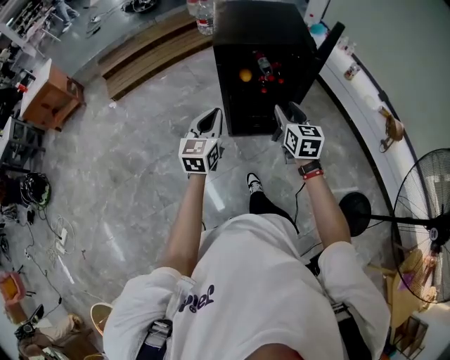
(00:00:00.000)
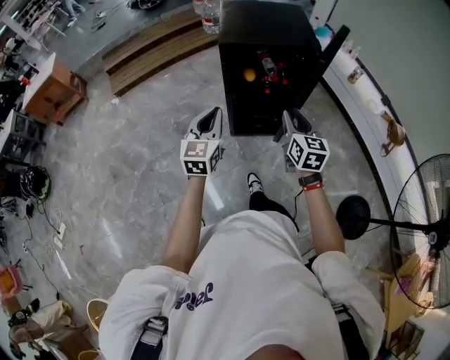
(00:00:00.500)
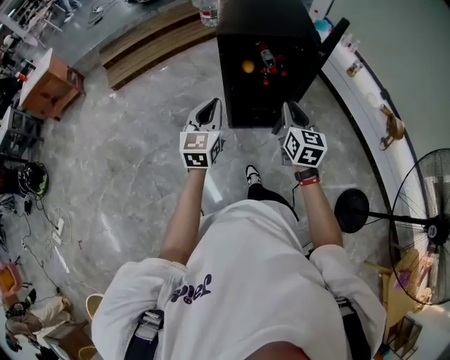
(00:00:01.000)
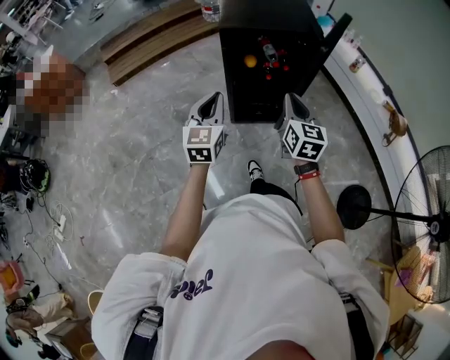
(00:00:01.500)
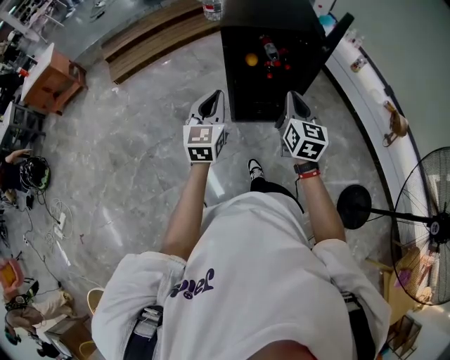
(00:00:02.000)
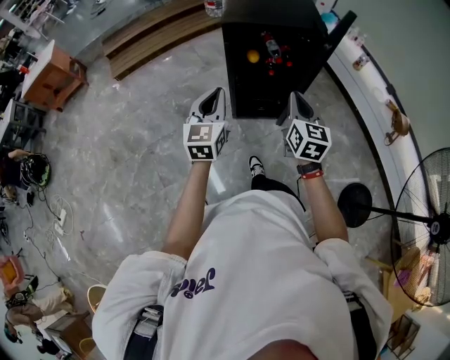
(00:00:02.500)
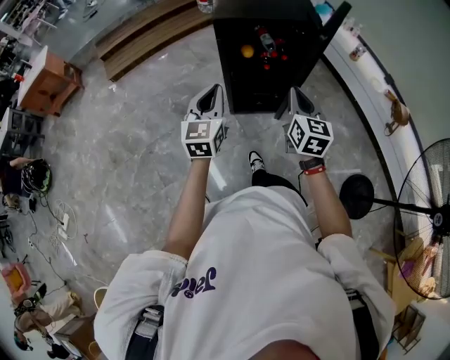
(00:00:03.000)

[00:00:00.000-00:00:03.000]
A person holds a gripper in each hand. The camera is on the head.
00:00:00.000 to 00:00:01.500: The right gripper closes.
00:00:01.500 to 00:00:03.000: There are only small adjustments of the grippers.

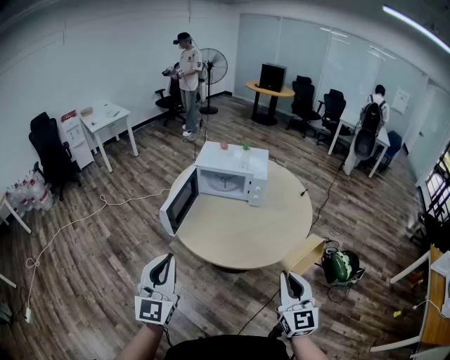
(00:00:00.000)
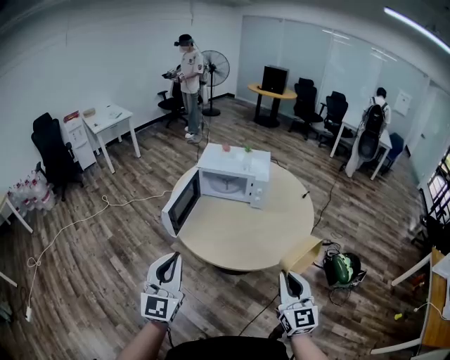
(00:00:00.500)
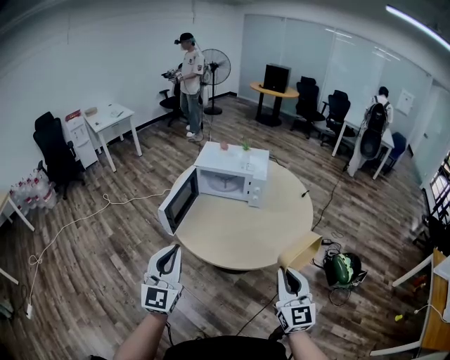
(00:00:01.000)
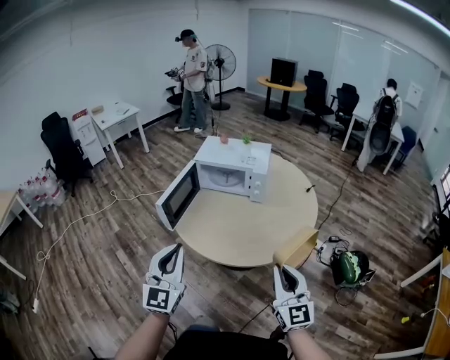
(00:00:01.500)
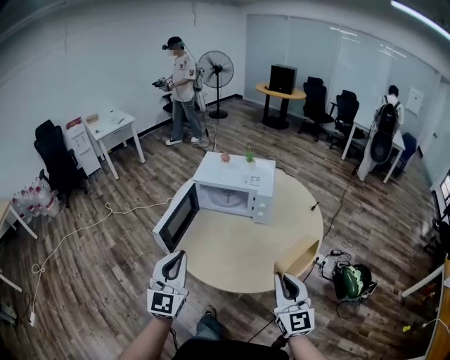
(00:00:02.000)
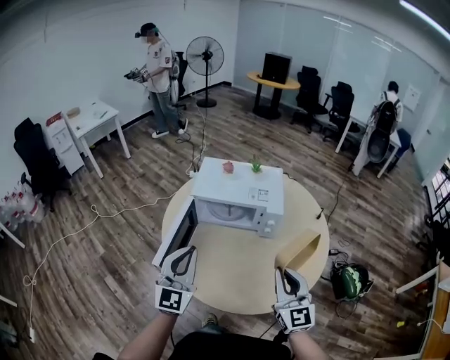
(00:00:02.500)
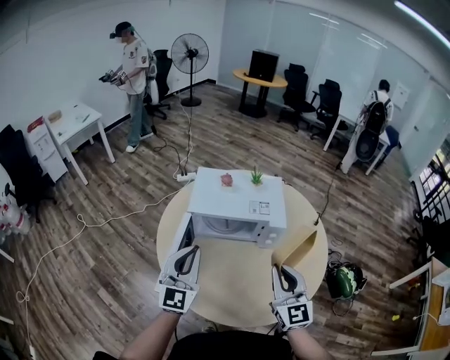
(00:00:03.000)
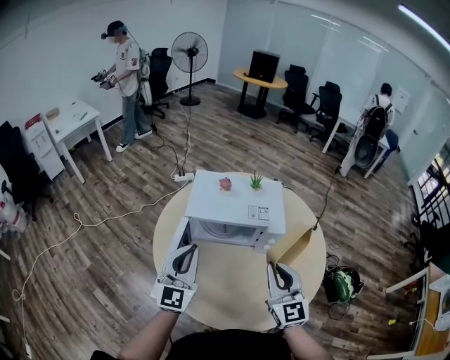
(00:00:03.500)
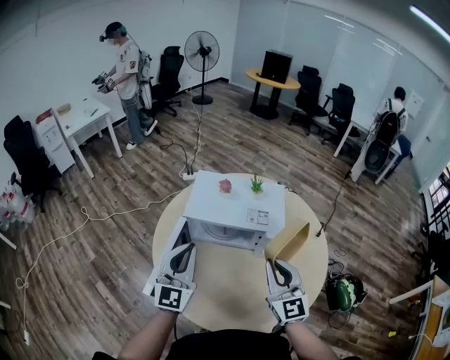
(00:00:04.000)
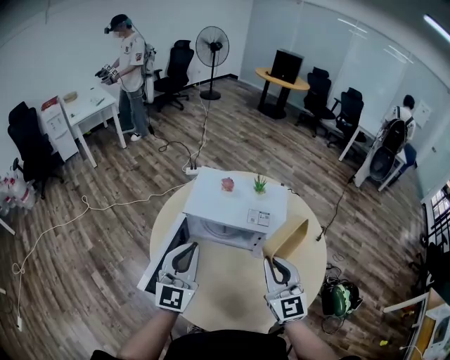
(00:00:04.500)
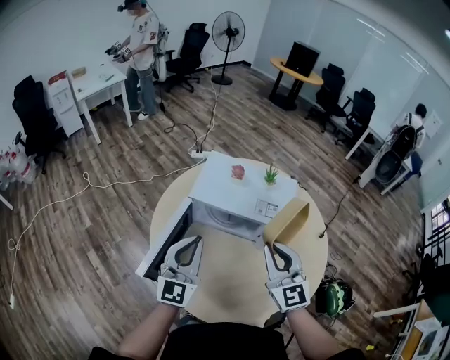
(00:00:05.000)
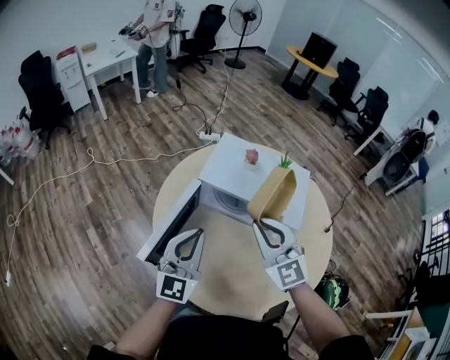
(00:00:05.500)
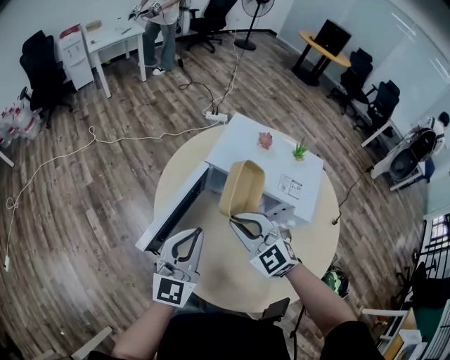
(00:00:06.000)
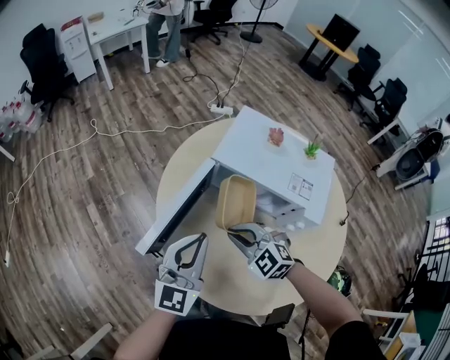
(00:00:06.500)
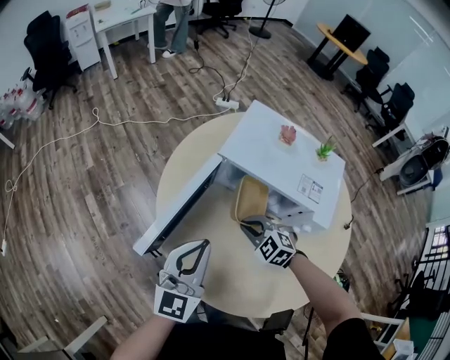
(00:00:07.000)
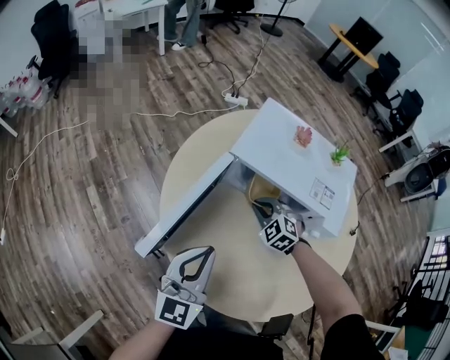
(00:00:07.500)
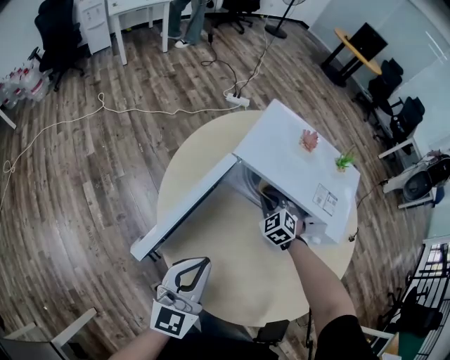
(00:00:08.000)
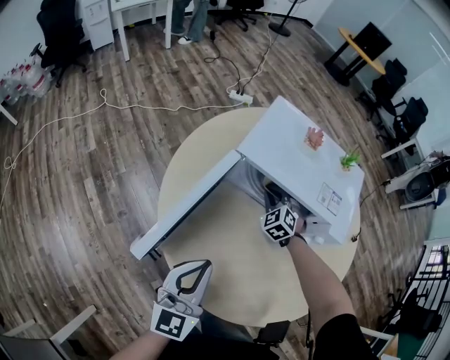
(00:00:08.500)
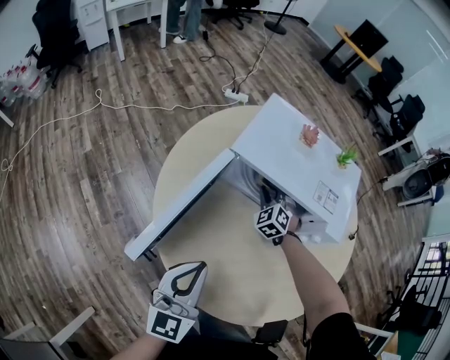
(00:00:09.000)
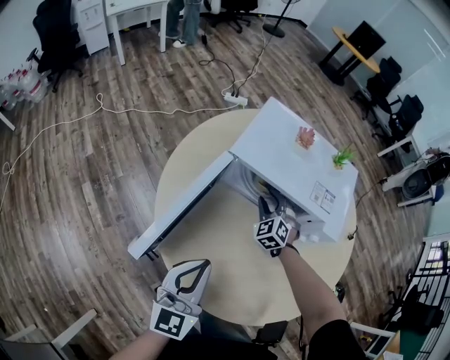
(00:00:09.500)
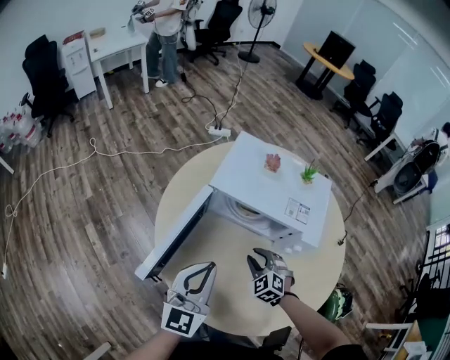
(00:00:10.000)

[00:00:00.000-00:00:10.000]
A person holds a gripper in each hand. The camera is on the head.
00:00:00.000 to 00:00:02.000: The two grippers go about 15 cm forward.
00:00:02.000 to 00:00:04.000: The grippers both shift forward by approximately 30 cm.
00:00:04.000 to 00:00:06.000: The left gripper shifts some 10 cm downward, while the right gripper heads to the left, downward and forward, covering approximately 20 cm, and turns by some 50 degrees.
00:00:06.000 to 00:00:08.000: The left gripper shifts about 5 cm downward; the right gripper travels downward, forward and to the right by about 30 cm, and rotates approximately 30 degrees.
00:00:08.000 to 00:00:10.000: The left gripper goes about 5 cm upward, while the right gripper is displaced backward by about 15 cm, and opens.

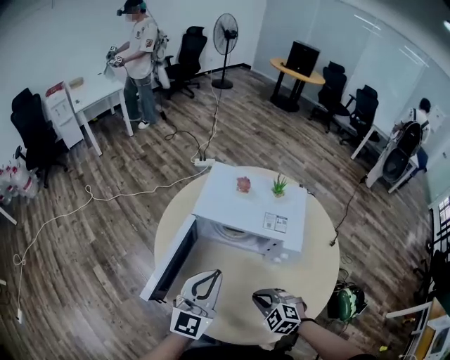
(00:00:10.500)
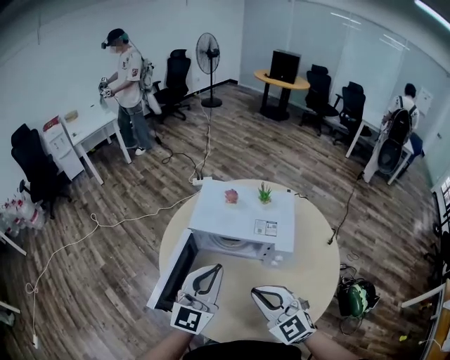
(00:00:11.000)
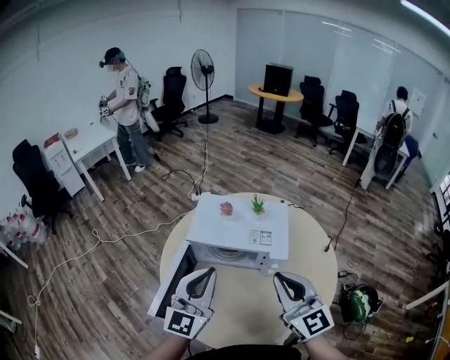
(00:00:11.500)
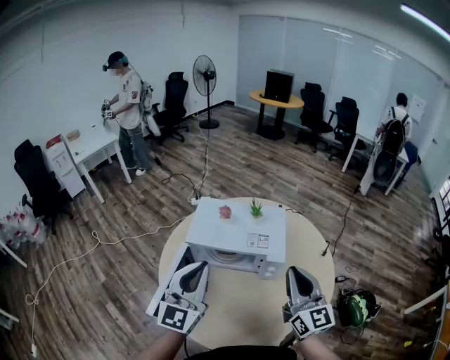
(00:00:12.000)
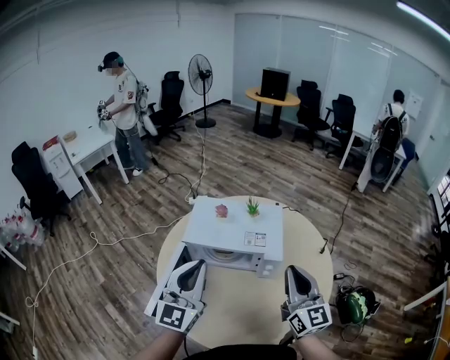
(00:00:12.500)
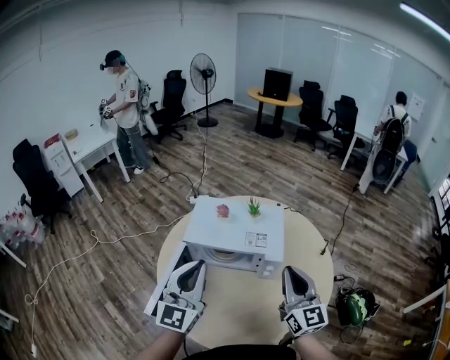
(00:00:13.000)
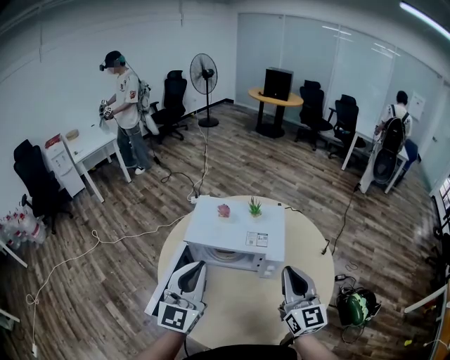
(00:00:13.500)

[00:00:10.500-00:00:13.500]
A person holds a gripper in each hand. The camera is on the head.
00:00:10.500 to 00:00:12.000: The left gripper goes roughly 15 cm upward; the right gripper heads upward, covering approximately 30 cm, and tilts its fingers roughly 60 degrees upward.
00:00:12.000 to 00:00:13.500: The grippers move only a little.

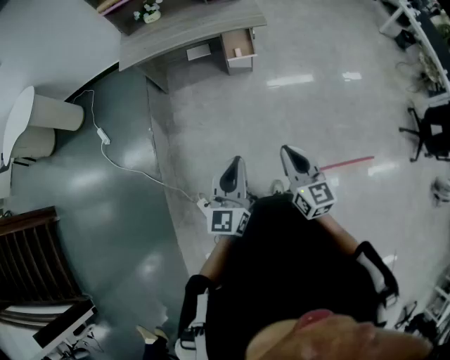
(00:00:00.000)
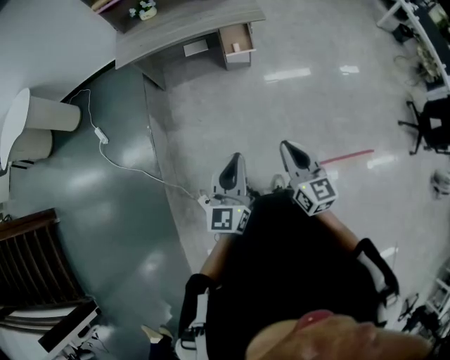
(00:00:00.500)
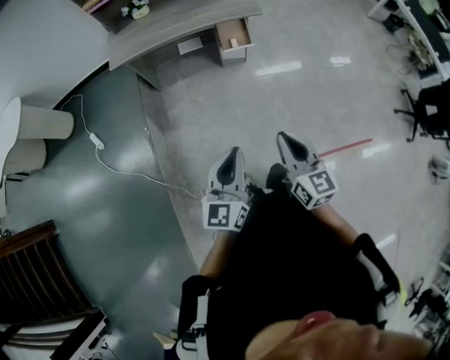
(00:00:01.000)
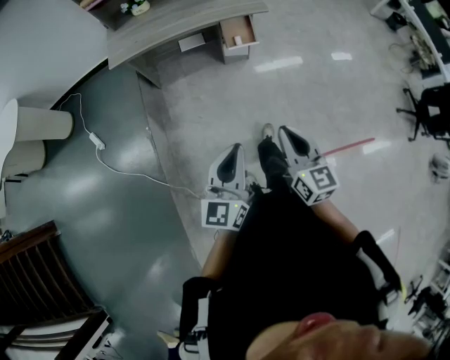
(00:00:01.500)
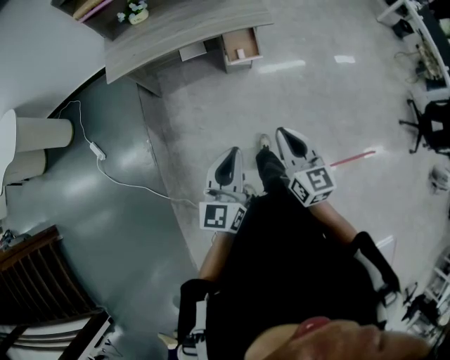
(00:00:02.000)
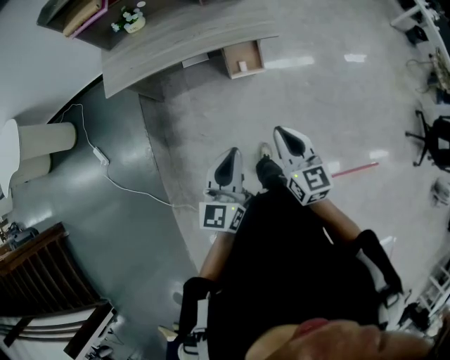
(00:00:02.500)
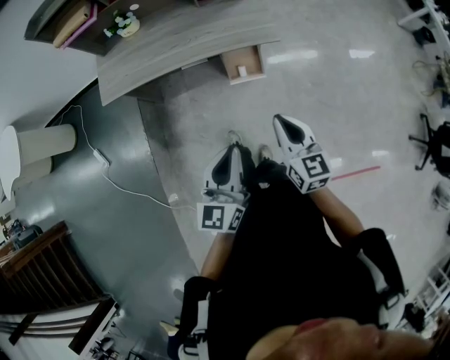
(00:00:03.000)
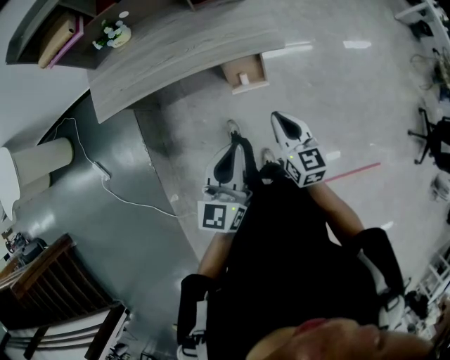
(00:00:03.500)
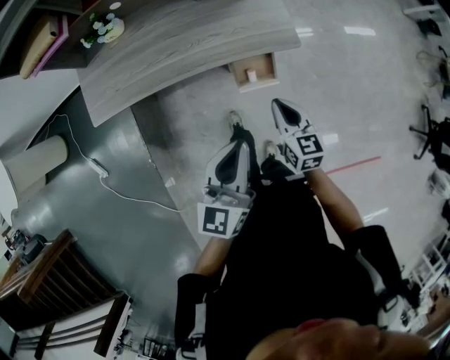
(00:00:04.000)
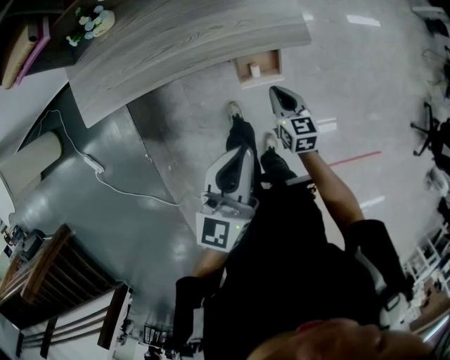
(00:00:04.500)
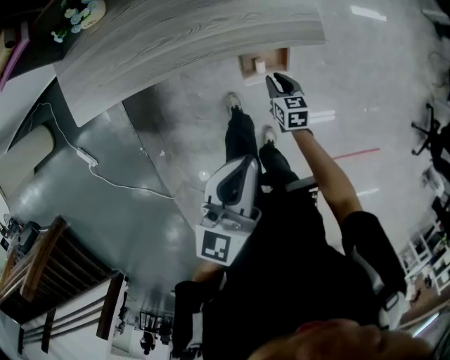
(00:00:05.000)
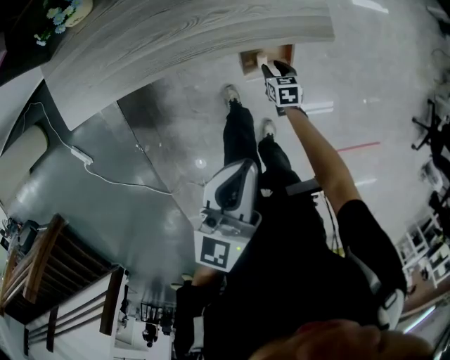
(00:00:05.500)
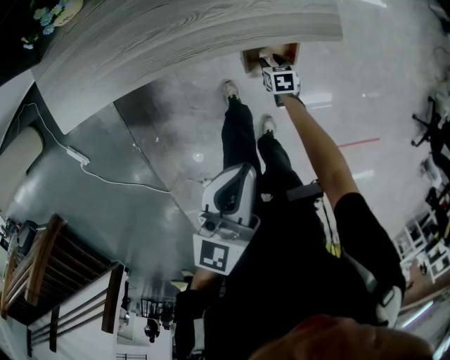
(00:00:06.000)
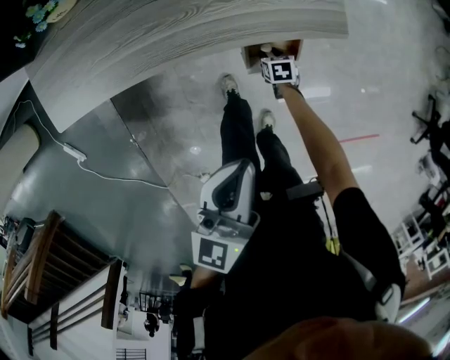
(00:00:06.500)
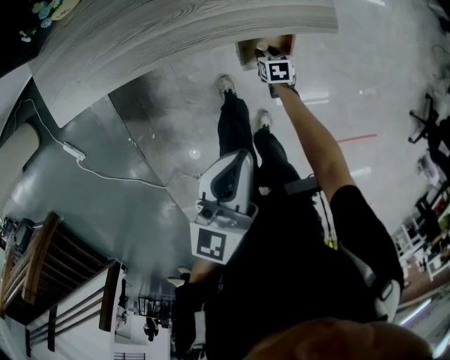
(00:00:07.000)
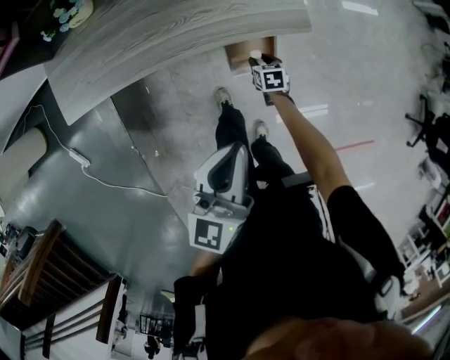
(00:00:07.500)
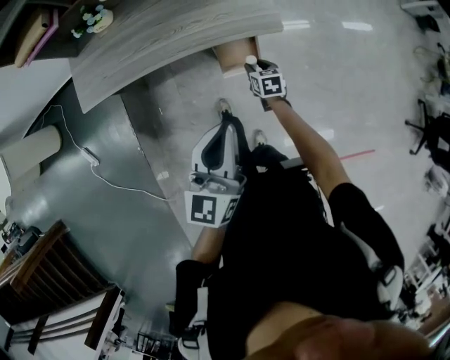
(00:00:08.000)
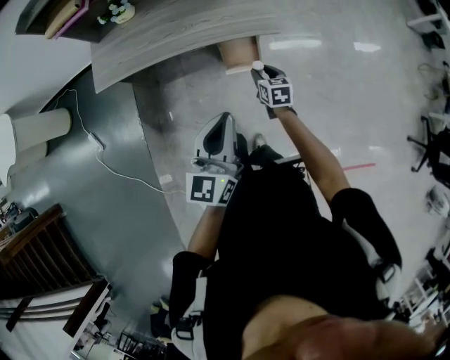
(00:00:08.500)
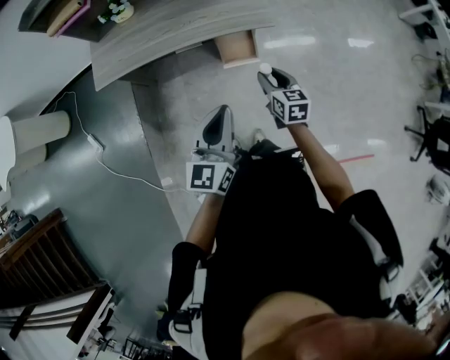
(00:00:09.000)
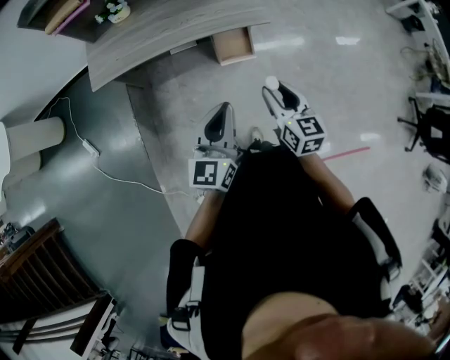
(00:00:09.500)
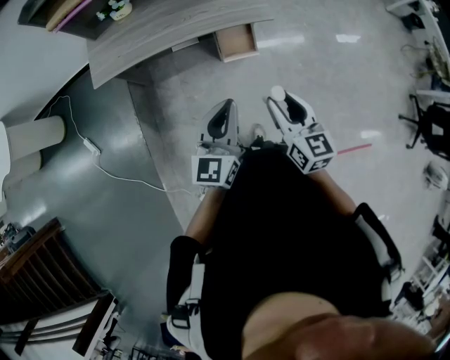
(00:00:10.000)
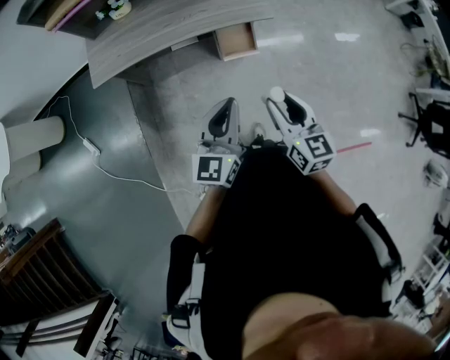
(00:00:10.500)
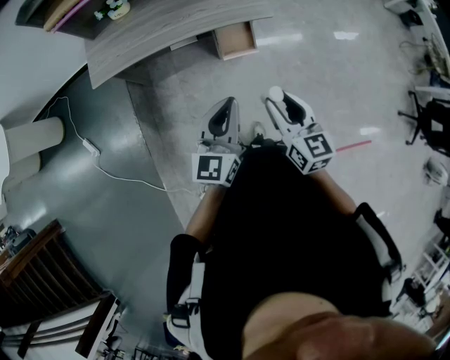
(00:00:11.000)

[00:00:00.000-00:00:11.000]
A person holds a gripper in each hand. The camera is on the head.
00:00:00.000 to 00:00:02.000: The right gripper is displaced forward and to the left by roughly 20 cm. Meanwhile the left gripper shifts about 20 cm forward.
00:00:02.000 to 00:00:03.500: The two grippers go roughly 35 cm forward.
00:00:03.500 to 00:00:05.500: The left gripper travels forward and downward by approximately 20 cm. The right gripper shifts about 50 cm downward and forward, angles its fingers downward, by about 40 degrees, and opens up.
00:00:05.500 to 00:00:07.500: The right gripper goes downward and returns, roughly 10 cm each way.
00:00:07.500 to 00:00:09.000: The right gripper moves upward and backward, about 40 cm, and turns by roughly 30 degrees. The left gripper shifts approximately 20 cm backward and upward.
00:00:09.000 to 00:00:11.000: The right gripper moves backward and upward, approximately 20 cm. The left gripper shifts by approximately 5 cm.
